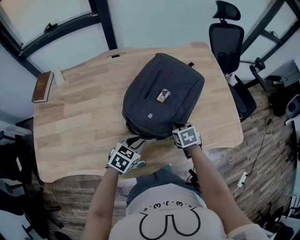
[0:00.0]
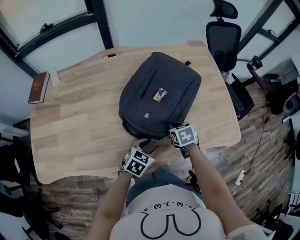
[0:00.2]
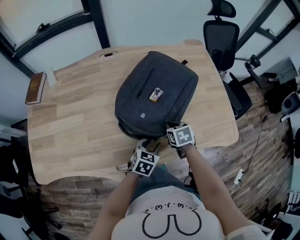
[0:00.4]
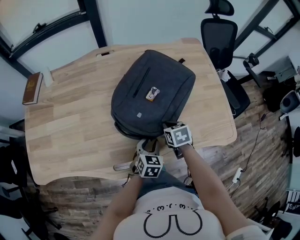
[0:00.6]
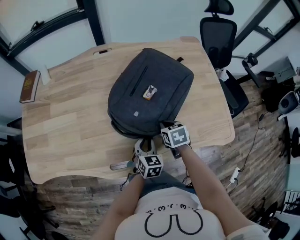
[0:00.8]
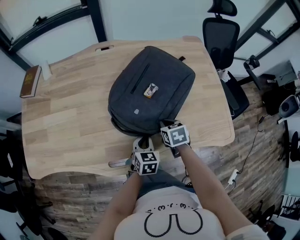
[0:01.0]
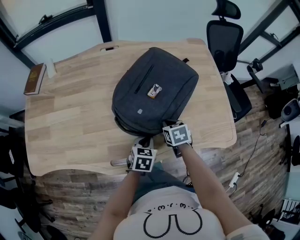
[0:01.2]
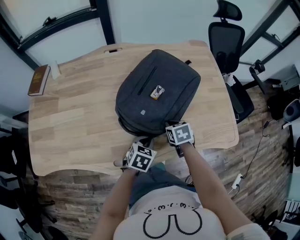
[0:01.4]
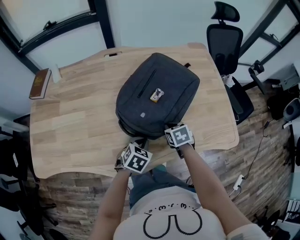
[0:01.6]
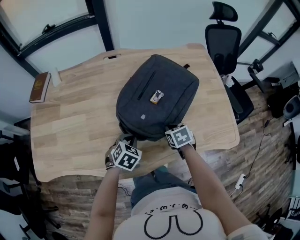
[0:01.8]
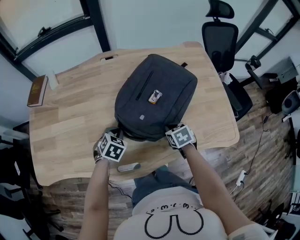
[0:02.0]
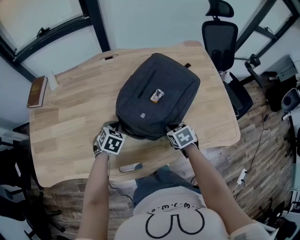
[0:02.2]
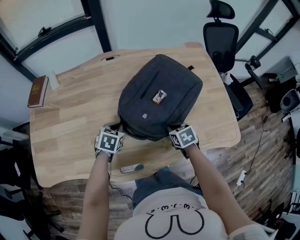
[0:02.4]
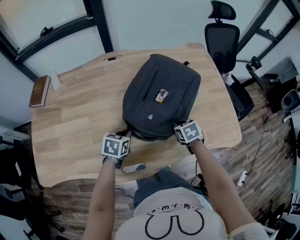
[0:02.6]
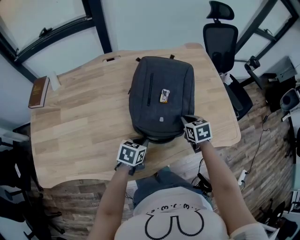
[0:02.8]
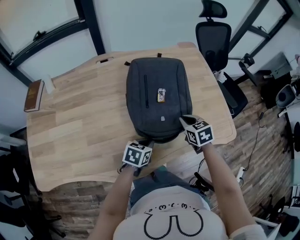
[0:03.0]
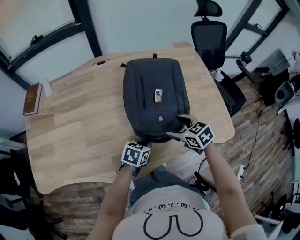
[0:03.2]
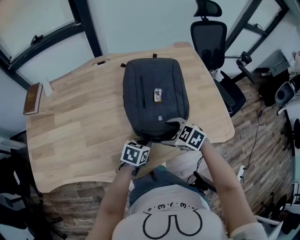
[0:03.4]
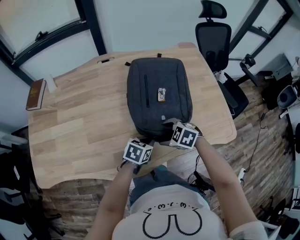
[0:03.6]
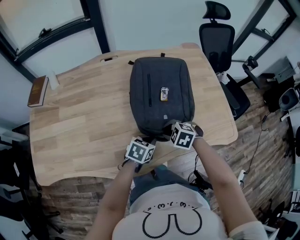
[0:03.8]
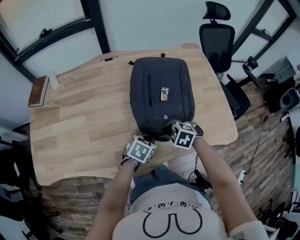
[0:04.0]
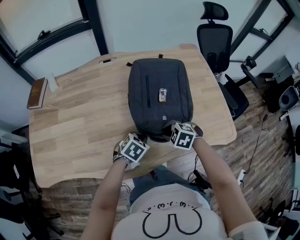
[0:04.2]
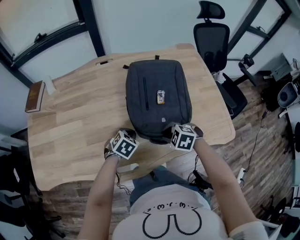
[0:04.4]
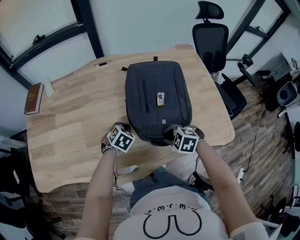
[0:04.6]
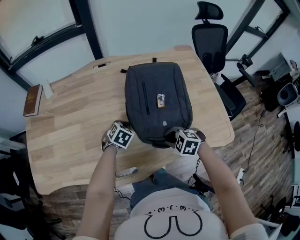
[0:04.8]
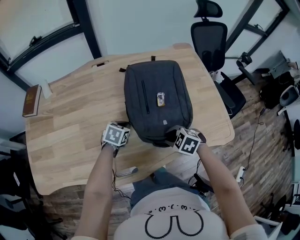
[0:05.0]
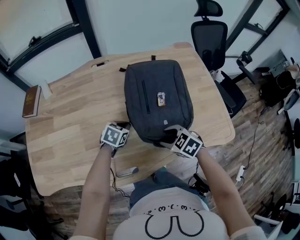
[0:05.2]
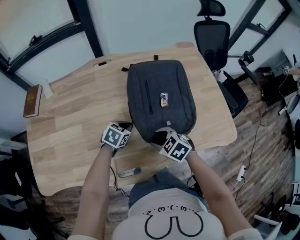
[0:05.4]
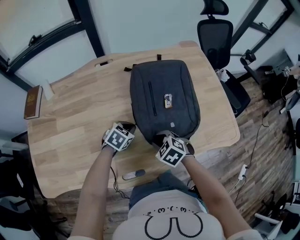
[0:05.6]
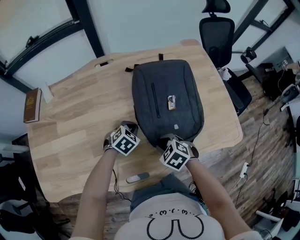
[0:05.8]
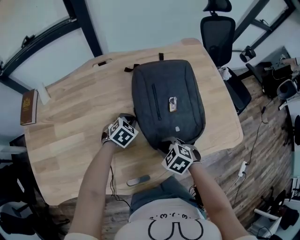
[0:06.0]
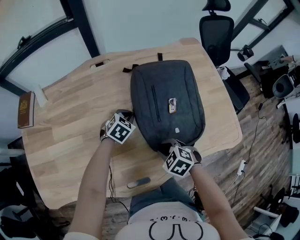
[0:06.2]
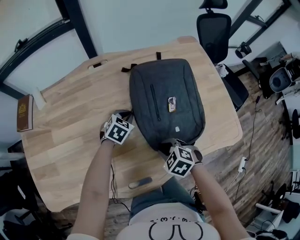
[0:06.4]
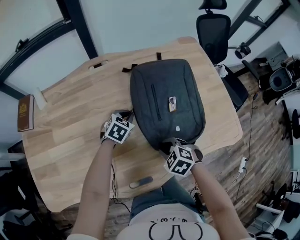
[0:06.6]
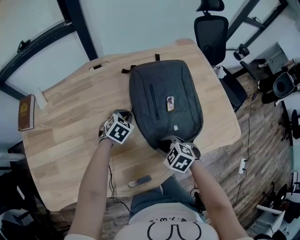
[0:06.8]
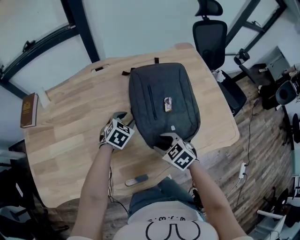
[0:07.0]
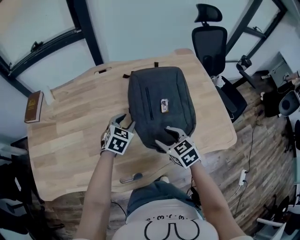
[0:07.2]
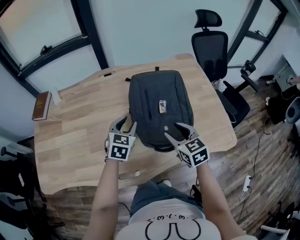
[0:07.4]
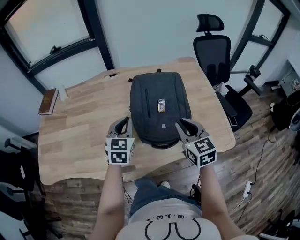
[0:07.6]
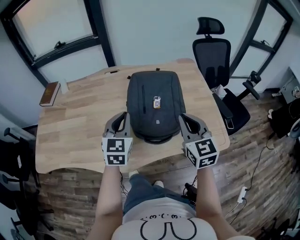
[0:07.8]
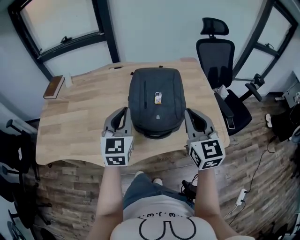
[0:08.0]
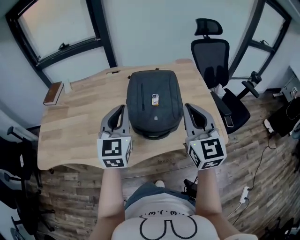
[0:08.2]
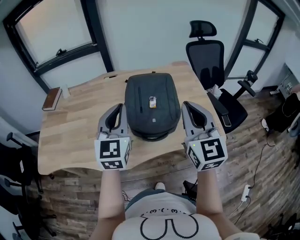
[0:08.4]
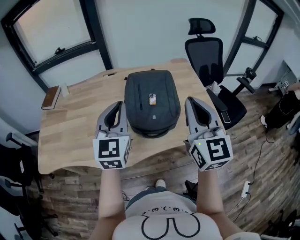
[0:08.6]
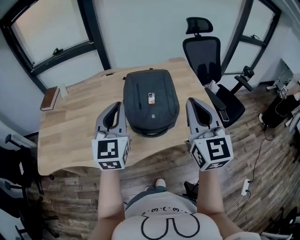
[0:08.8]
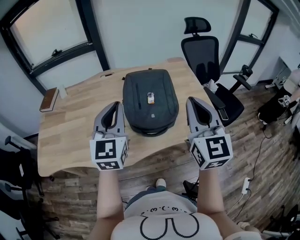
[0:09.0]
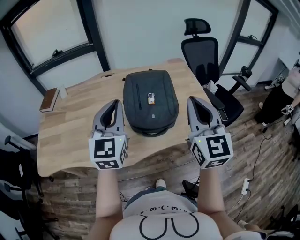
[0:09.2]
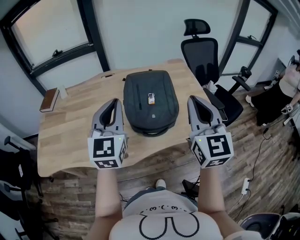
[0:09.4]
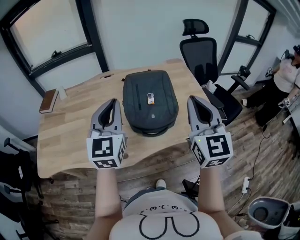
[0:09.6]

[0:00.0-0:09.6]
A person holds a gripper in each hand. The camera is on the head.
0:00.0 to 0:01.6: The left gripper opens, then closes again.
0:01.6 to 0:03.2: The right gripper travels upward by roughly 10 cm, turns by roughly 20 degrees, and opens up, while the left gripper goes to the left and returns, about 15 cm each way, and changes its angle by approximately 20 degrees.
0:03.2 to 0:04.8: The right gripper moves downward, roughly 5 cm, swivels roughly 40 degrees, and closes. The left gripper moves approximately 15 cm, and rotates approximately 30 degrees.
0:04.8 to 0:06.4: The right gripper shifts about 10 cm to the left; the left gripper travels forward by about 10 cm.
0:06.4 to 0:08.0: The left gripper heads upward and backward, covering about 35 cm, tilts its fingers roughly 40 degrees upward, and opens, then closes once more; the right gripper goes some 35 cm upward and to the right, and tips its fingers upward by about 60 degrees.
0:08.0 to 0:09.6: The right gripper travels upward and backward by about 10 cm. The left gripper goes approximately 10 cm upward.

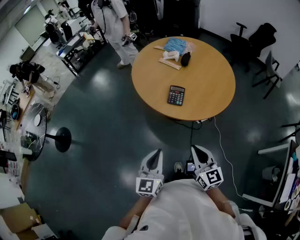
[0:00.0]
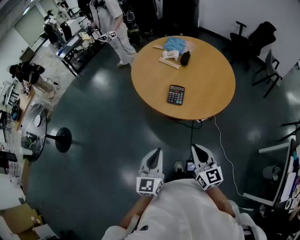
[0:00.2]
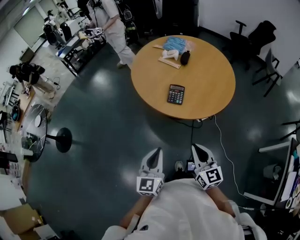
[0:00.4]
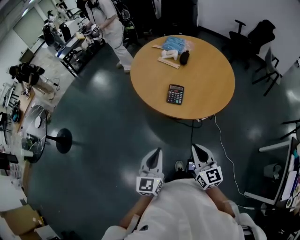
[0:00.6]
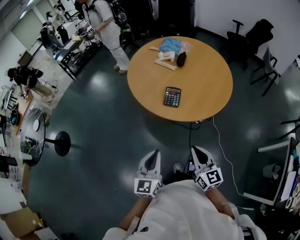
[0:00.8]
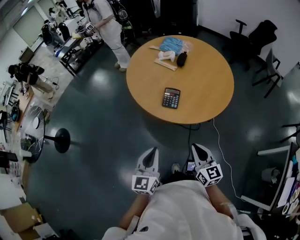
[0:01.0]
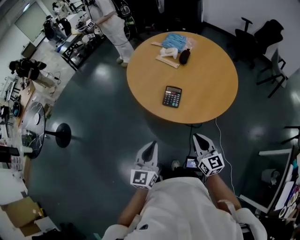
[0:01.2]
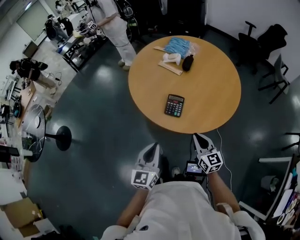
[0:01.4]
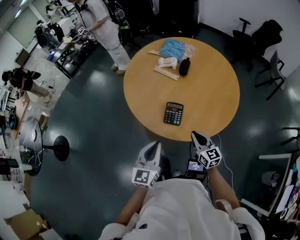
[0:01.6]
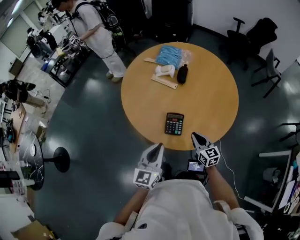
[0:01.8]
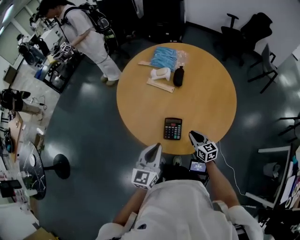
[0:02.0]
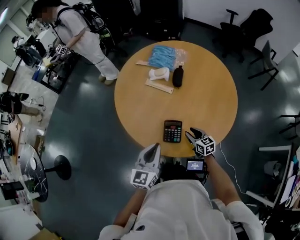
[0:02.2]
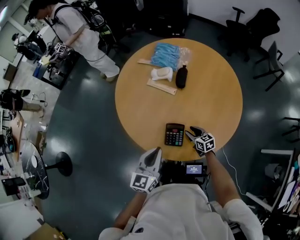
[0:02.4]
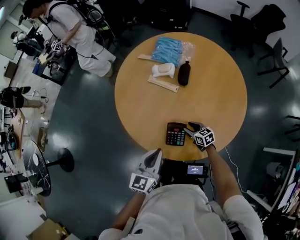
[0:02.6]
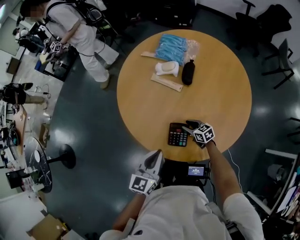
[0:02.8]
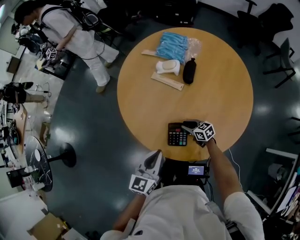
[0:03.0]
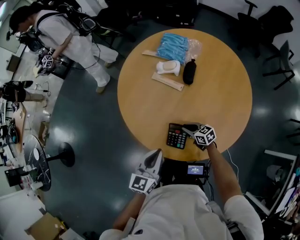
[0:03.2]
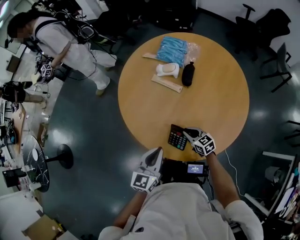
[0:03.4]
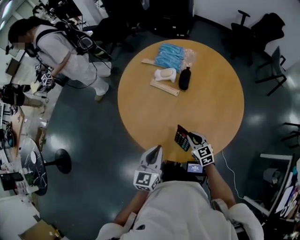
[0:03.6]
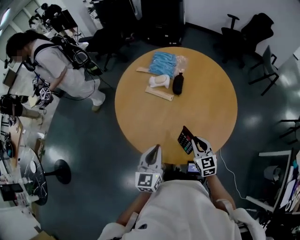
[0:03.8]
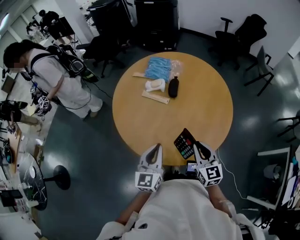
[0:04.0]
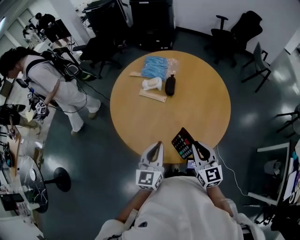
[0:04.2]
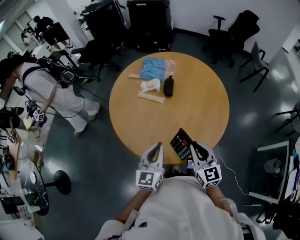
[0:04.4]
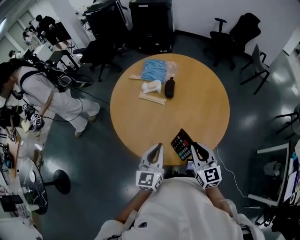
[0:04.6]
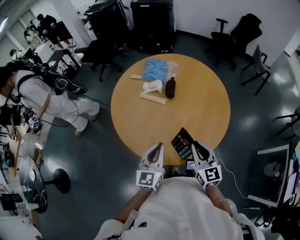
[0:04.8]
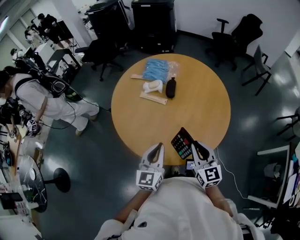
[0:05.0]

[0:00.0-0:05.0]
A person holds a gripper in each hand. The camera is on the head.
0:00.0 to 0:01.6: The left gripper heads forward, covering about 20 cm. The right gripper shifts approximately 25 cm forward and downward.
0:01.6 to 0:03.4: The left gripper travels forward by roughly 10 cm. Meanwhile the right gripper is displaced forward and downward by approximately 20 cm, rotates roughly 30 degrees, and opens, then closes again.
0:03.4 to 0:05.0: The left gripper travels upward by some 5 cm, while the right gripper heads upward, covering about 25 cm, and rotates some 40 degrees.

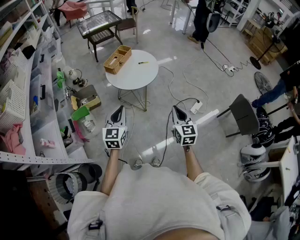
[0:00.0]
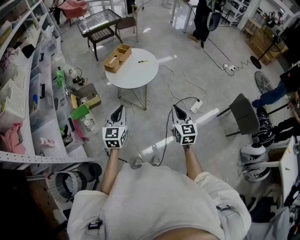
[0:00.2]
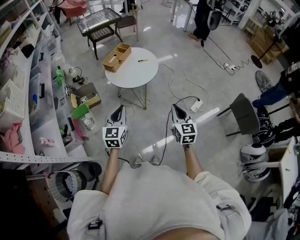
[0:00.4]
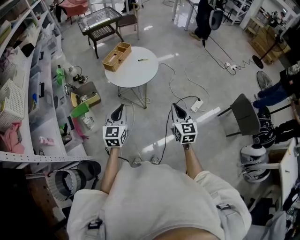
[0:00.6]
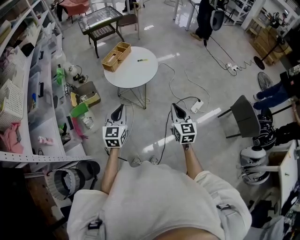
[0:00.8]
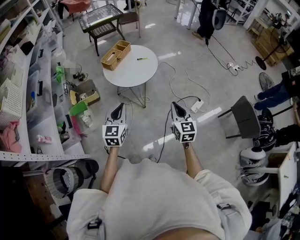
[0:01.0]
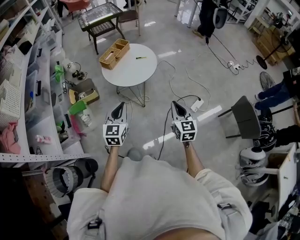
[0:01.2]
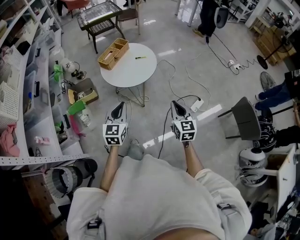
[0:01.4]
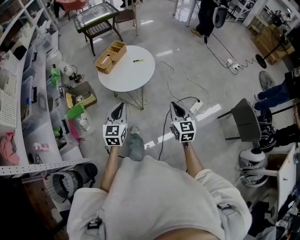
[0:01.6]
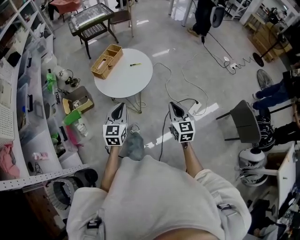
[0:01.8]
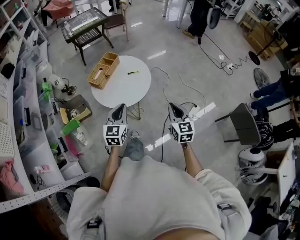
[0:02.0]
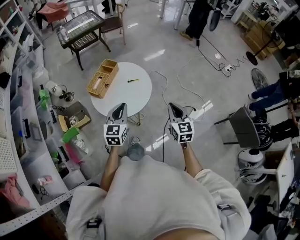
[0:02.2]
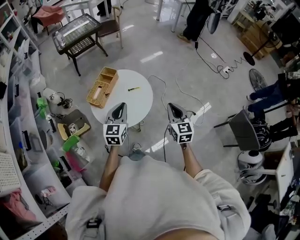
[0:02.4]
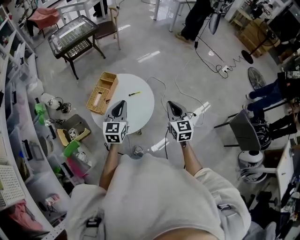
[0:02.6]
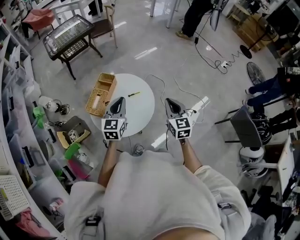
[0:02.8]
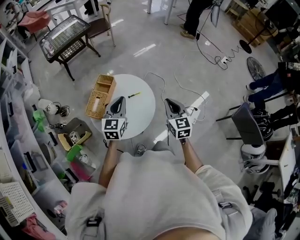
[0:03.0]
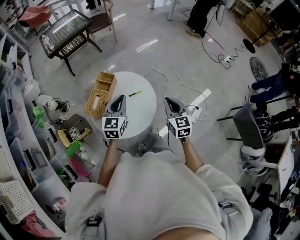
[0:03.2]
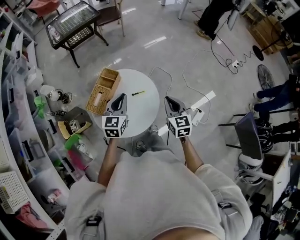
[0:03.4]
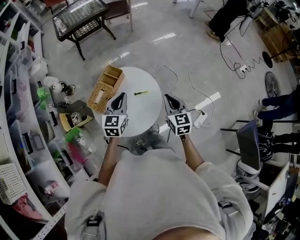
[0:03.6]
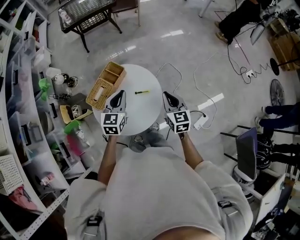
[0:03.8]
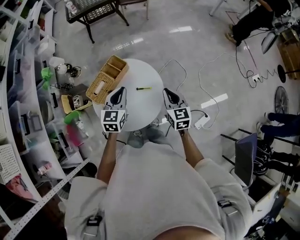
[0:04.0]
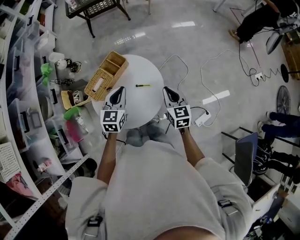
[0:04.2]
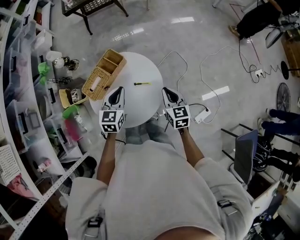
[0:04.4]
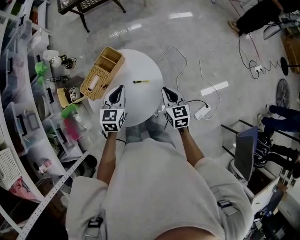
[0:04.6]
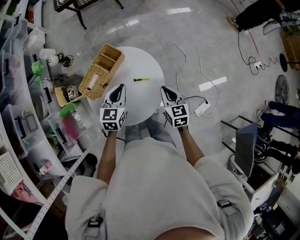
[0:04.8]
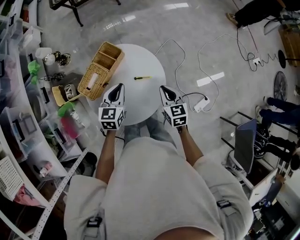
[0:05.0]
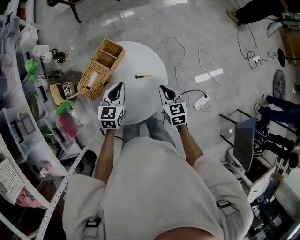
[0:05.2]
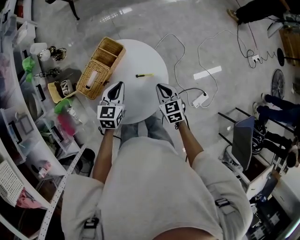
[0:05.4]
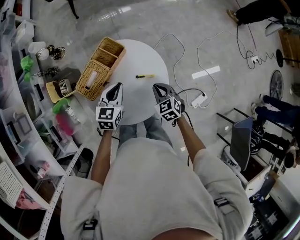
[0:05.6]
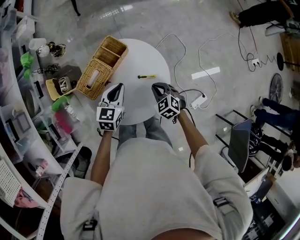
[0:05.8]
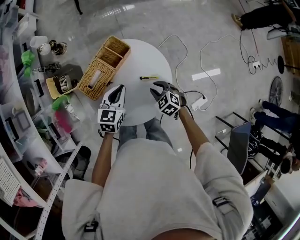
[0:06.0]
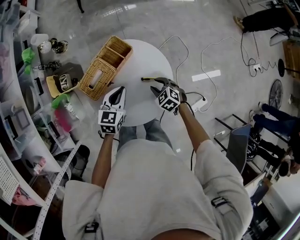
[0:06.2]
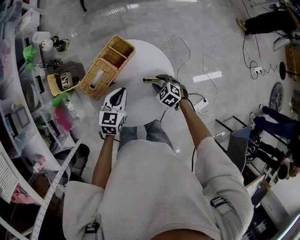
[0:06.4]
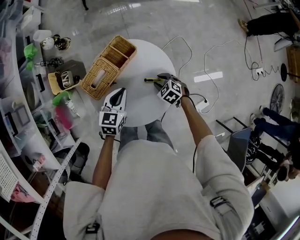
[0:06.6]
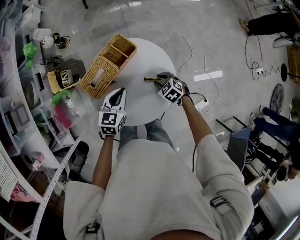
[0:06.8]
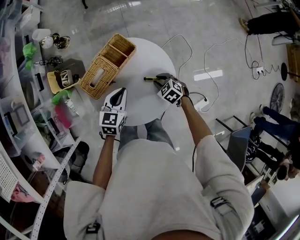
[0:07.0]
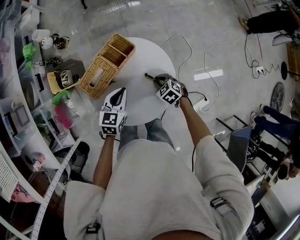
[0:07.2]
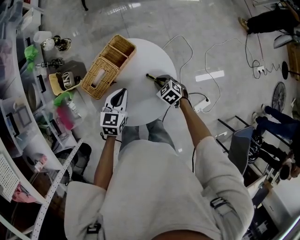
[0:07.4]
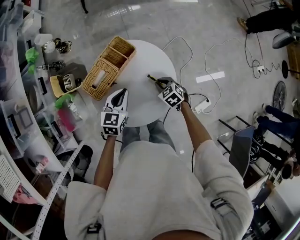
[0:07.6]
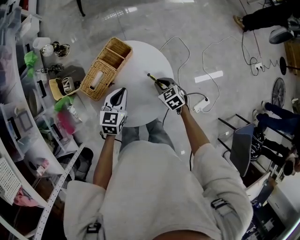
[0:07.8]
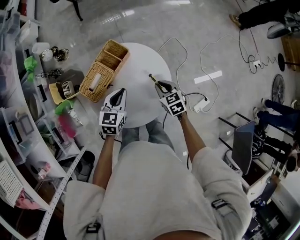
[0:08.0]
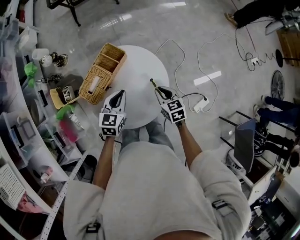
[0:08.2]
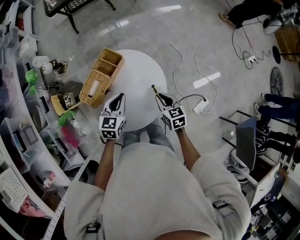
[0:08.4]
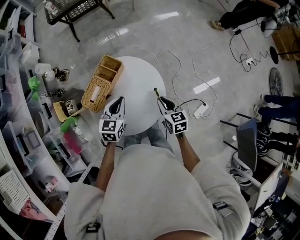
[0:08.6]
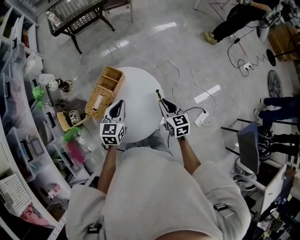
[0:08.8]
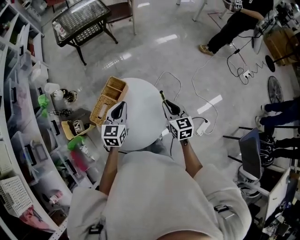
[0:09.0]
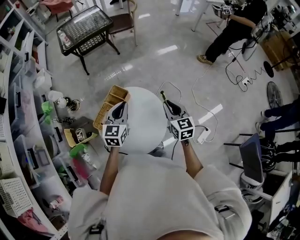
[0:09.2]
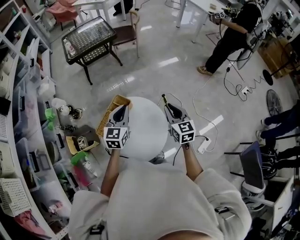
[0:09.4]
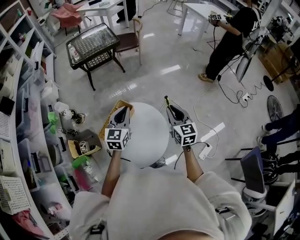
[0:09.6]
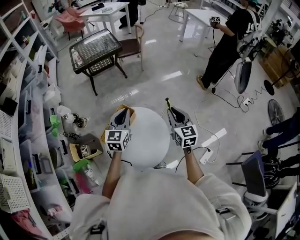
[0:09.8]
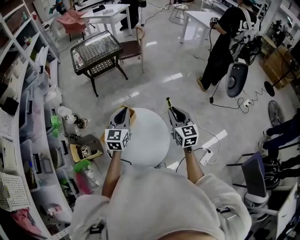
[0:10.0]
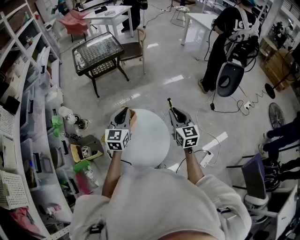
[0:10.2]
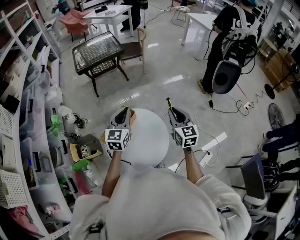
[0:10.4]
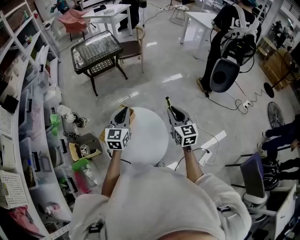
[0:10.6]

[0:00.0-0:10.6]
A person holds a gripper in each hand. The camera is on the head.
0:00.0 to 0:01.6: The right gripper travels forward by approximately 10 cm. Meanwhile the left gripper is displaced forward and to the right by approximately 10 cm.
0:01.6 to 0:03.0: The two grippers go roughly 30 cm forward.
0:03.0 to 0:04.6: The right gripper moves downward and forward, some 15 cm, and swivels some 30 degrees. Meanwhile the left gripper heads downward, covering approximately 10 cm, and swivels roughly 20 degrees.
0:04.6 to 0:06.0: The left gripper heads downward, covering roughly 5 cm; the right gripper heads downward and to the left, covering approximately 15 cm, and changes its angle by approximately 50 degrees.
0:06.0 to 0:07.6: The grippers move only a little.
0:07.6 to 0:09.0: The left gripper goes some 10 cm upward. The right gripper heads upward, covering about 20 cm, and tilts its fingers approximately 30 degrees upward.
0:09.0 to 0:10.6: The left gripper heads upward, covering roughly 10 cm, while the right gripper is displaced upward and forward by about 15 cm.
